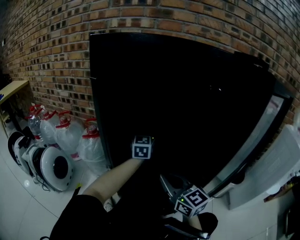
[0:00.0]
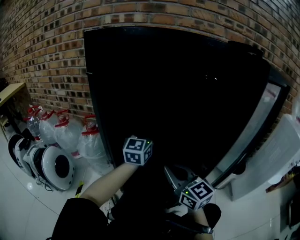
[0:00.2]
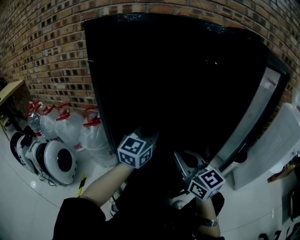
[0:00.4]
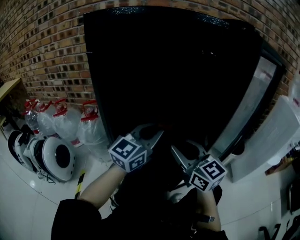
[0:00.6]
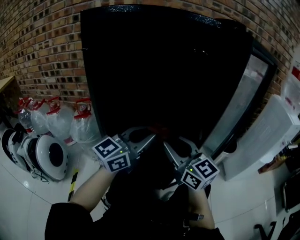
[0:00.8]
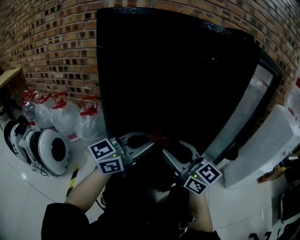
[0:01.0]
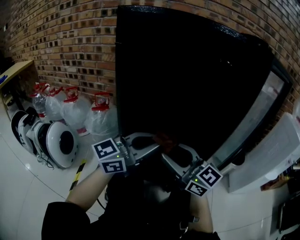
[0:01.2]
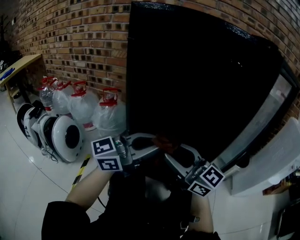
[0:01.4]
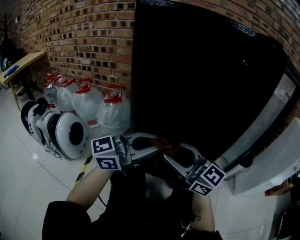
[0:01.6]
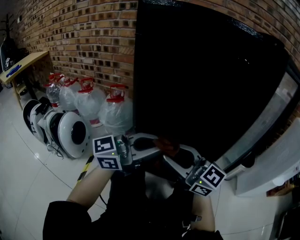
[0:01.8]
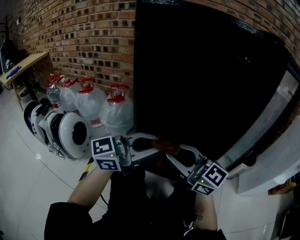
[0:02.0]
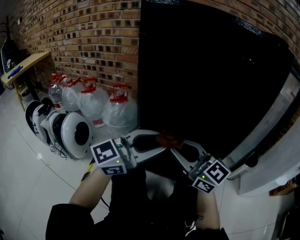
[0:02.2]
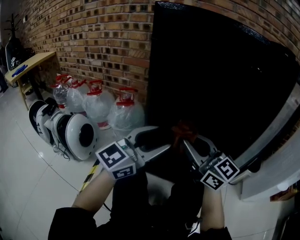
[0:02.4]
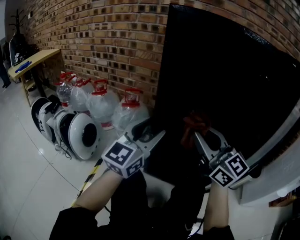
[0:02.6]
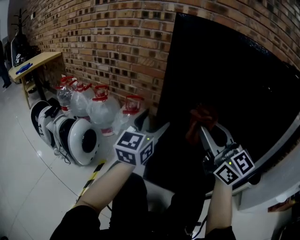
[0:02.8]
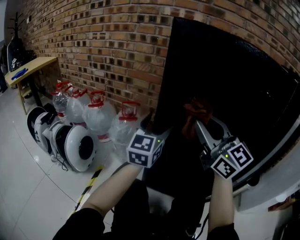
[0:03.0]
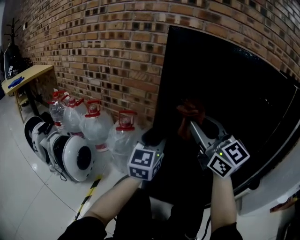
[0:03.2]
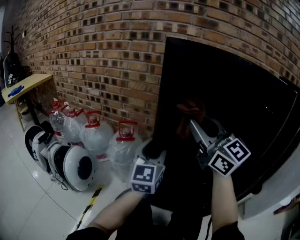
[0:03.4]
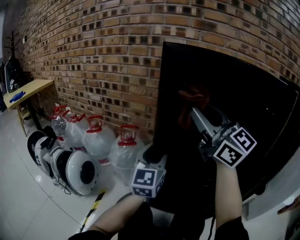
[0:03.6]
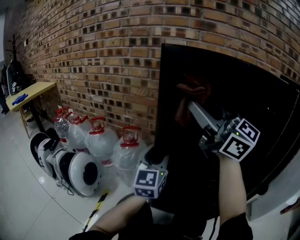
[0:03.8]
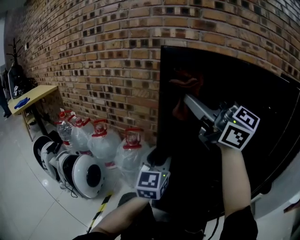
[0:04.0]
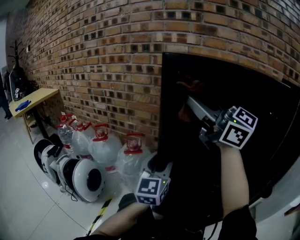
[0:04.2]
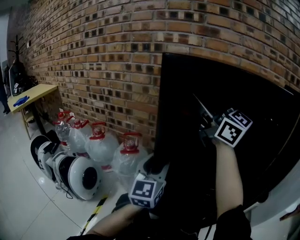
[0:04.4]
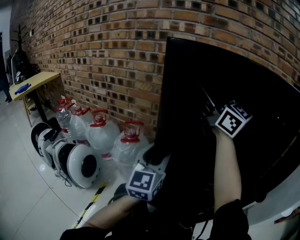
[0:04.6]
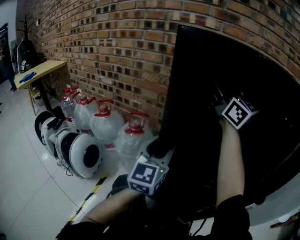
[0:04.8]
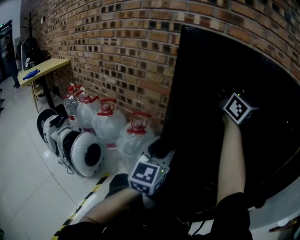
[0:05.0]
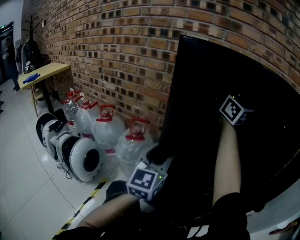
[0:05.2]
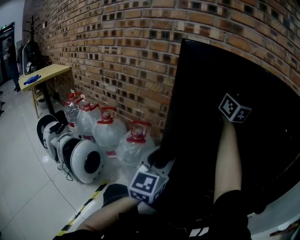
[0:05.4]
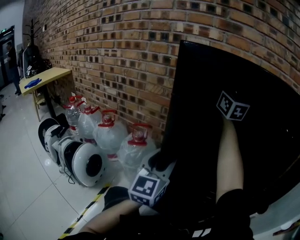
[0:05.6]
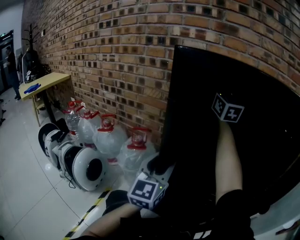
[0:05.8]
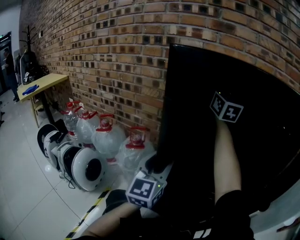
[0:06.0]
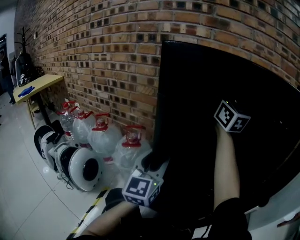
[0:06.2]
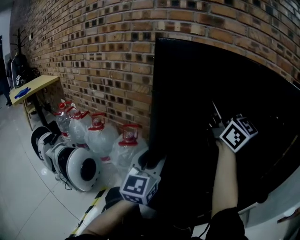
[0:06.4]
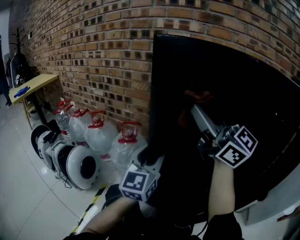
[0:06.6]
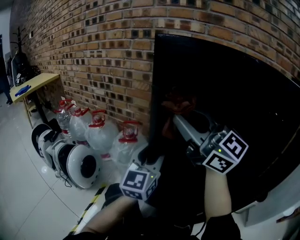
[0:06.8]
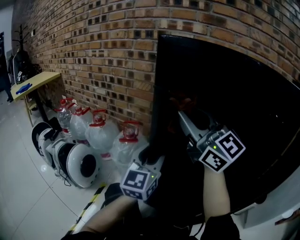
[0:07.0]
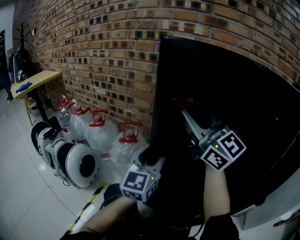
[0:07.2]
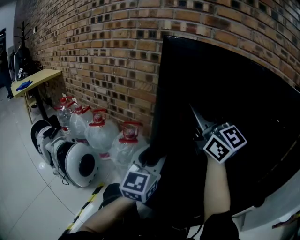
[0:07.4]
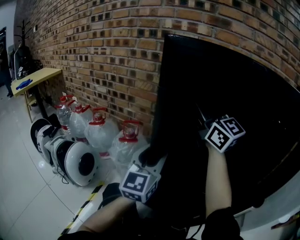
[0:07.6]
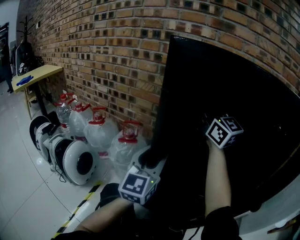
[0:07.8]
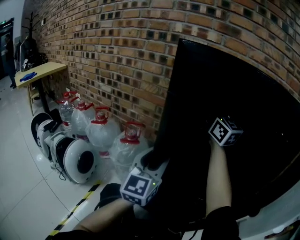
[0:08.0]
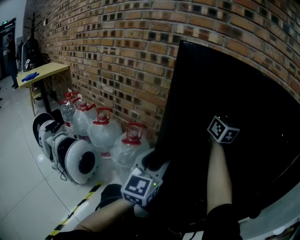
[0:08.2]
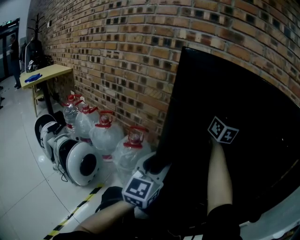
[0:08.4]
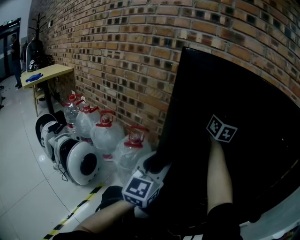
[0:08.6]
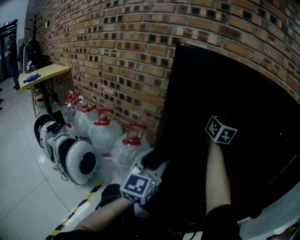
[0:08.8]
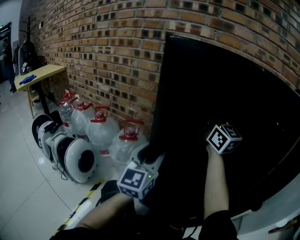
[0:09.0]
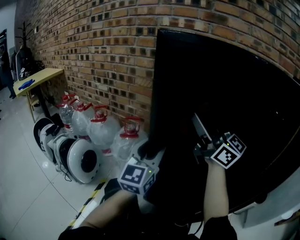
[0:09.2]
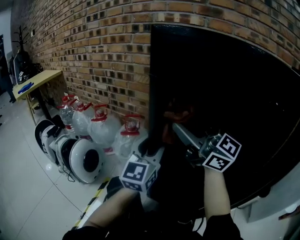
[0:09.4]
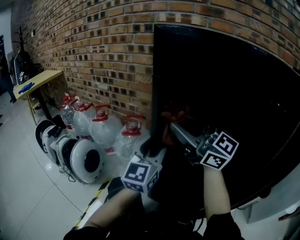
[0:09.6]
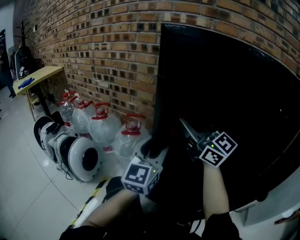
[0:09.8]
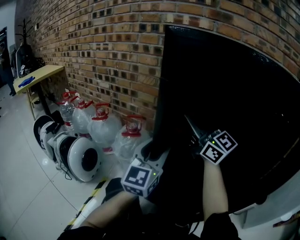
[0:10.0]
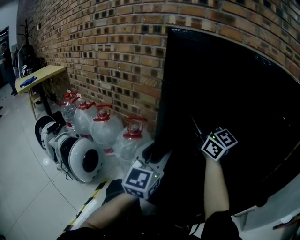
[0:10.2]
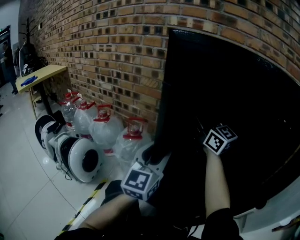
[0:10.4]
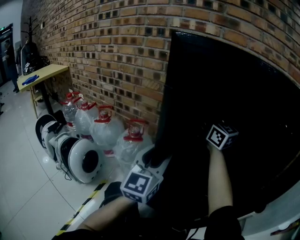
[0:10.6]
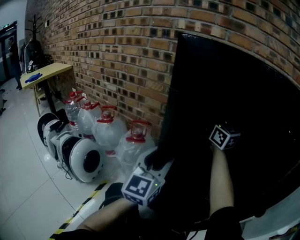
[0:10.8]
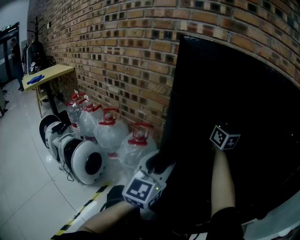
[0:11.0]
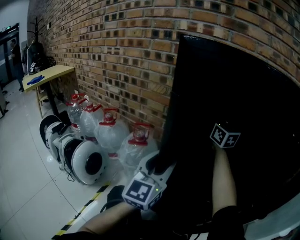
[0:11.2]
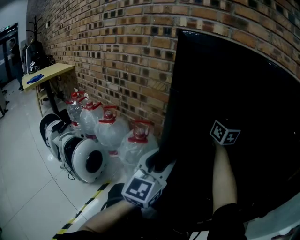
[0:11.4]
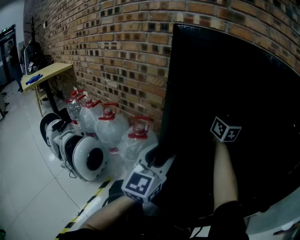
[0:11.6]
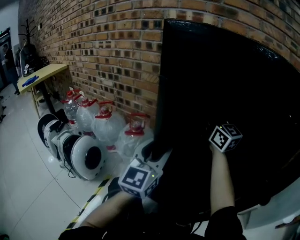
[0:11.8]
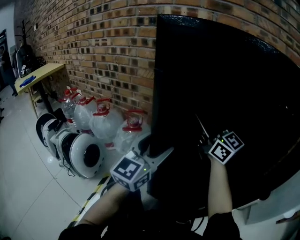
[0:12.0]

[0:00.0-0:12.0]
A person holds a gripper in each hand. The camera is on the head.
0:00.0 to 0:01.6: The right gripper ends up some 10 cm from where it was, changes its angle by roughly 20 degrees, and opens, while the left gripper changes place by roughly 35 cm, and changes its angle by about 60 degrees.
0:01.6 to 0:03.0: The left gripper moves some 20 cm, rotates about 60 degrees, and opens; the right gripper moves upward, approximately 15 cm, and closes its fingers.
0:03.0 to 0:04.4: The right gripper goes roughly 20 cm upward and forward. Meanwhile the left gripper closes.
0:04.4 to 0:06.0: The right gripper moves forward and to the right, roughly 20 cm, and changes its angle by about 30 degrees.
0:06.0 to 0:07.6: The right gripper heads backward and to the left, covering roughly 15 cm, and rotates about 20 degrees.
0:07.6 to 0:09.0: The right gripper heads to the right, covering roughly 5 cm, and moves about 15 cm forward and comes back.
0:09.0 to 0:10.4: The right gripper travels backward and back again, some 10 cm each way.
0:10.4 to 0:12.0: The right gripper heads backward, covering roughly 5 cm.

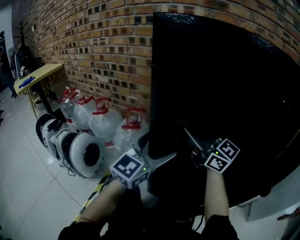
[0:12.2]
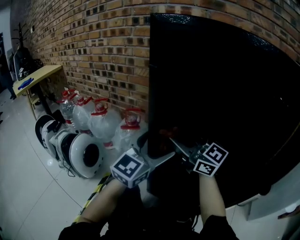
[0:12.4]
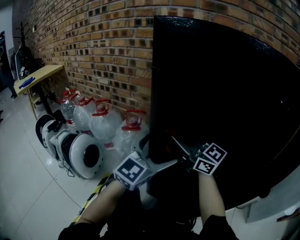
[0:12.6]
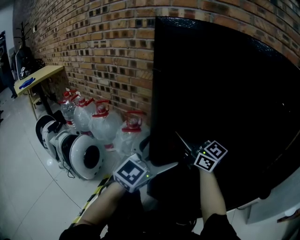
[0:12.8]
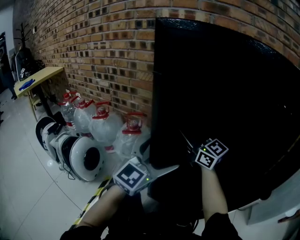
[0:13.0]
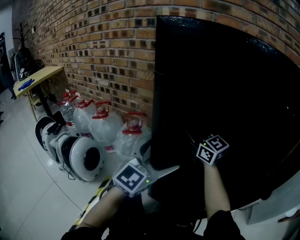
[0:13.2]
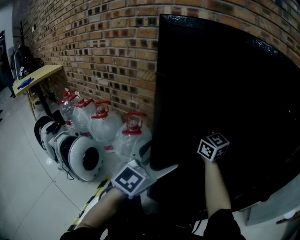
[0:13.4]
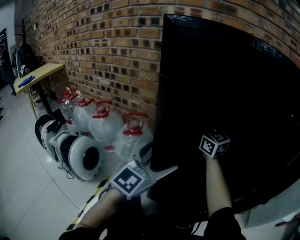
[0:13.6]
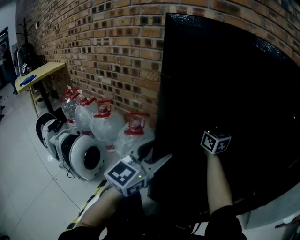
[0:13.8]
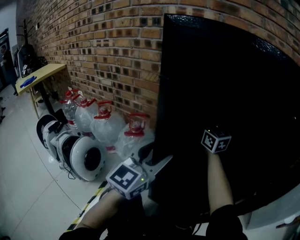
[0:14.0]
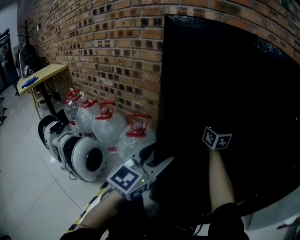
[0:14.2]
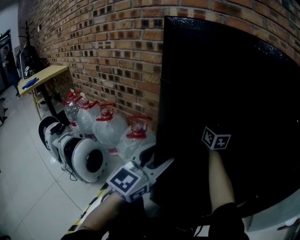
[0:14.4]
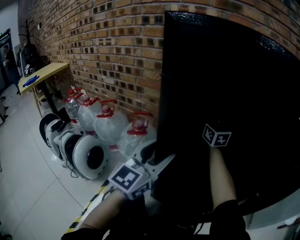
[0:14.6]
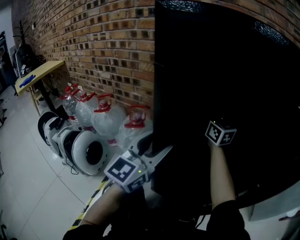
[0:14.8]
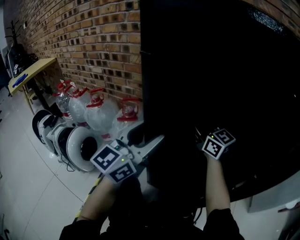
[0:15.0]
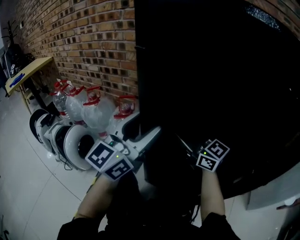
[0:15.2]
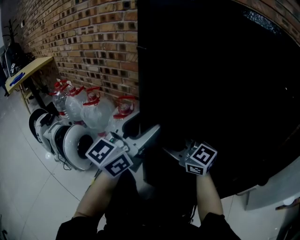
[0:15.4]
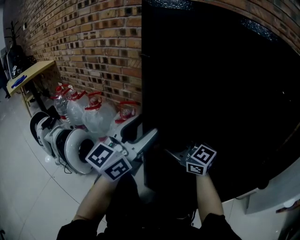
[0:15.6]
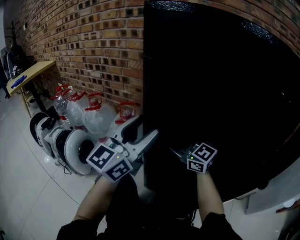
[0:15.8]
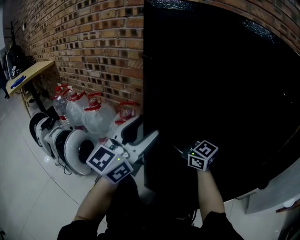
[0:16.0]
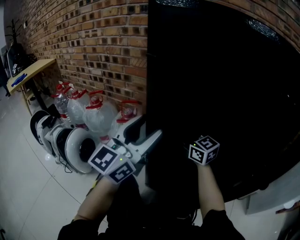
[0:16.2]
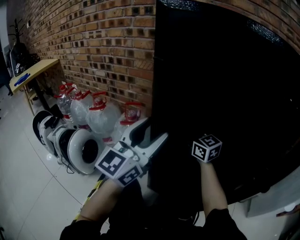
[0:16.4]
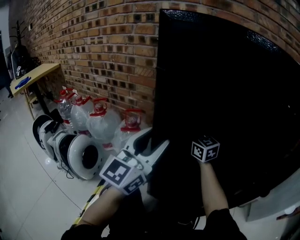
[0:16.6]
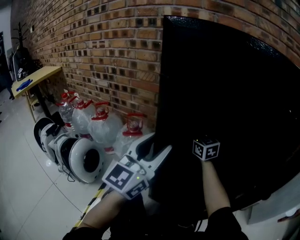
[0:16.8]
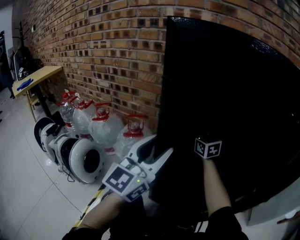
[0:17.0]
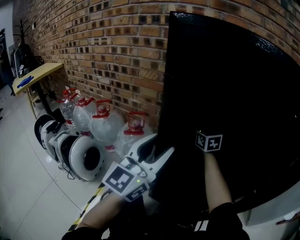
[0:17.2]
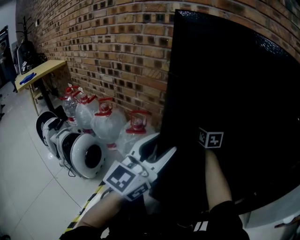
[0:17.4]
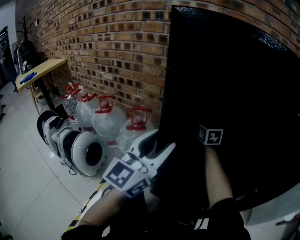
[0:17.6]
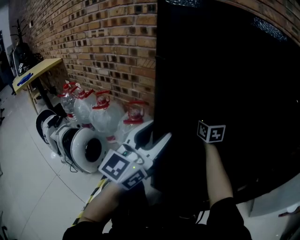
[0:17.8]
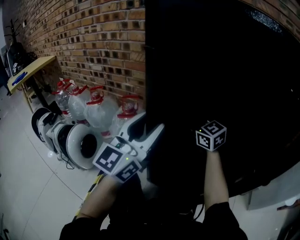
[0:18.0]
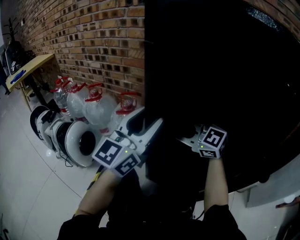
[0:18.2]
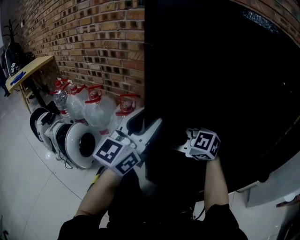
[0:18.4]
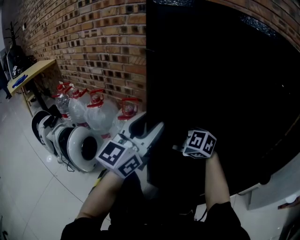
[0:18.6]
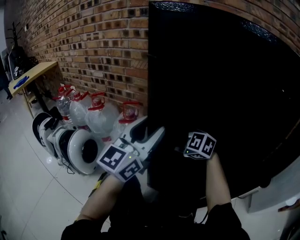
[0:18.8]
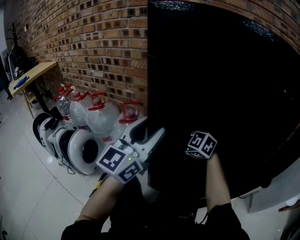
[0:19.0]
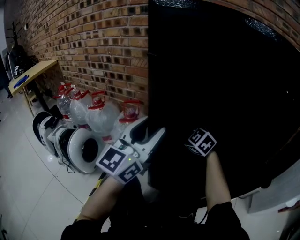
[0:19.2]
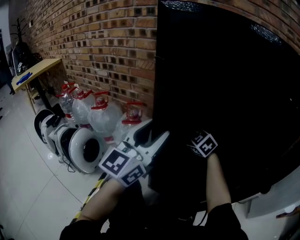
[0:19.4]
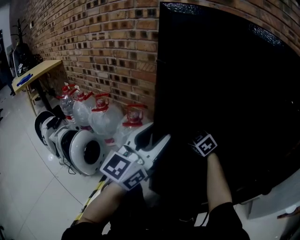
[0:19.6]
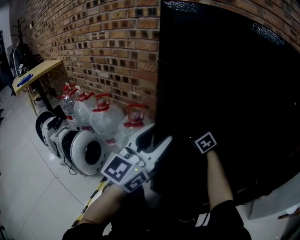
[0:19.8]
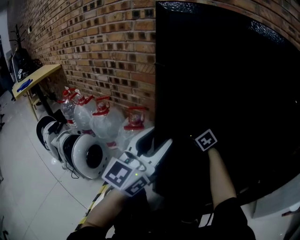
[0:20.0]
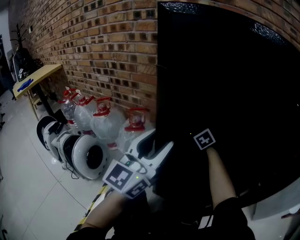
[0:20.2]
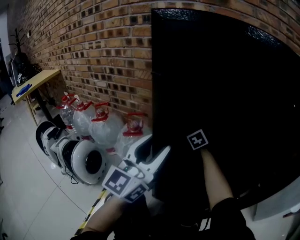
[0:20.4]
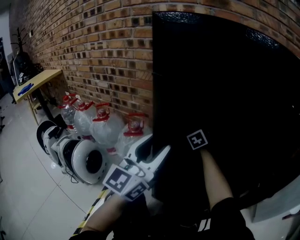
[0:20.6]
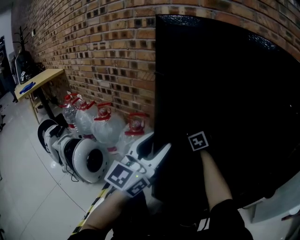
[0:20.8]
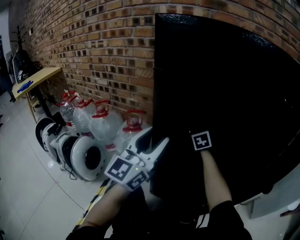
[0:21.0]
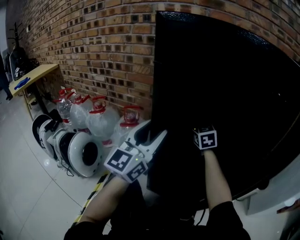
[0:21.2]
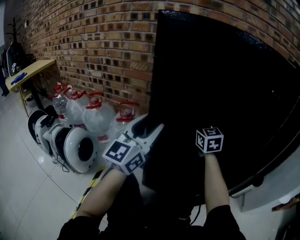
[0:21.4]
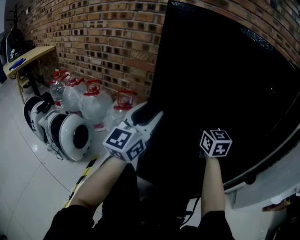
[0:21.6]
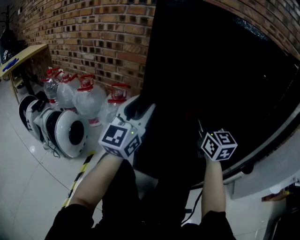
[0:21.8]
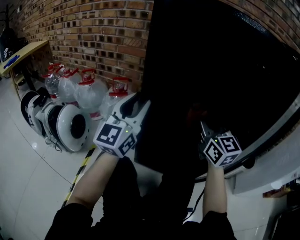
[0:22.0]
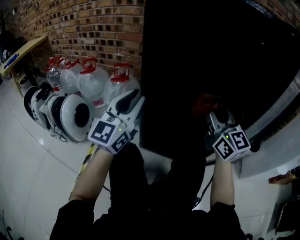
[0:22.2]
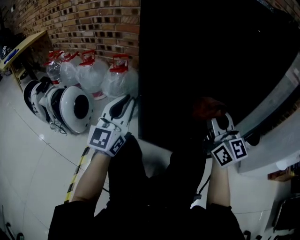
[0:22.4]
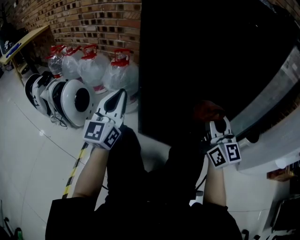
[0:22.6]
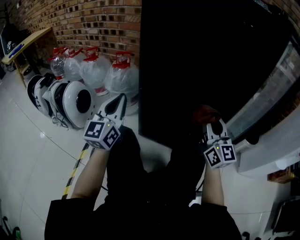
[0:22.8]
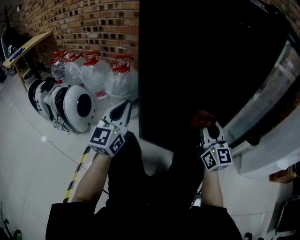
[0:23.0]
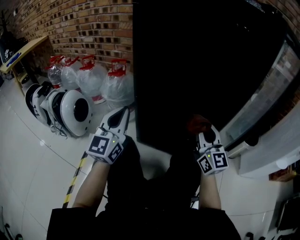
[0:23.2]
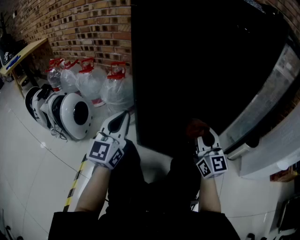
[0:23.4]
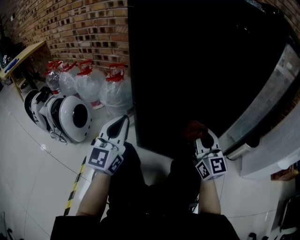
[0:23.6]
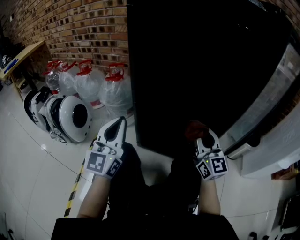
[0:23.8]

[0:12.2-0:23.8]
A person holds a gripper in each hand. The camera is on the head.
0:12.2 to 0:13.6: The right gripper goes roughly 15 cm forward, and rotates roughly 20 degrees.
0:13.6 to 0:15.0: The right gripper travels backward by roughly 5 cm; the left gripper closes up.
0:15.0 to 0:16.6: The right gripper shifts approximately 5 cm downward, and travels backward and back again, approximately 10 cm each way.
0:16.6 to 0:18.0: The right gripper goes forward and returns, approximately 10 cm each way.
0:18.0 to 0:19.4: The right gripper heads downward, covering approximately 10 cm, reaches roughly 10 cm backward, then returns, and turns by some 30 degrees.
0:19.4 to 0:21.0: The right gripper moves forward and to the right, approximately 10 cm, and changes its angle by some 30 degrees.
0:21.0 to 0:22.4: The right gripper goes approximately 35 cm backward, and tips its fingers upward by approximately 30 degrees. The left gripper travels backward and downward by about 15 cm, and closes its fingers.
0:22.4 to 0:23.8: The right gripper heads downward, covering approximately 10 cm.
